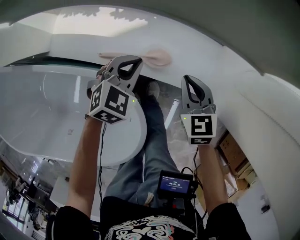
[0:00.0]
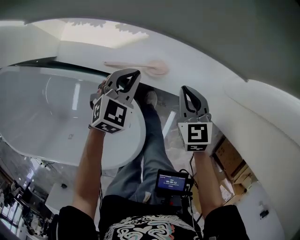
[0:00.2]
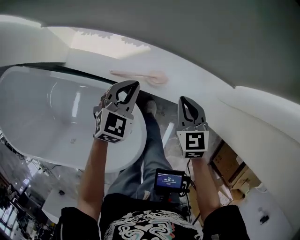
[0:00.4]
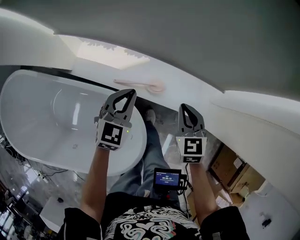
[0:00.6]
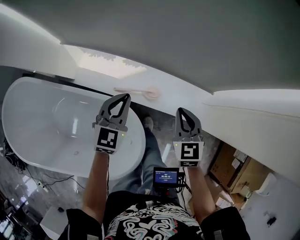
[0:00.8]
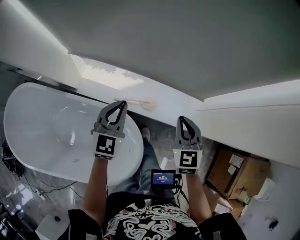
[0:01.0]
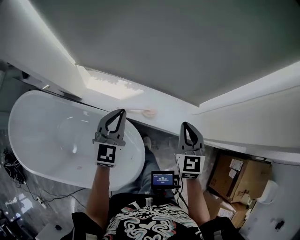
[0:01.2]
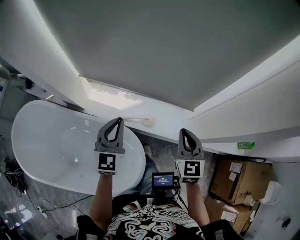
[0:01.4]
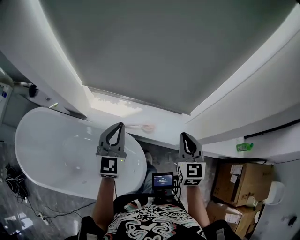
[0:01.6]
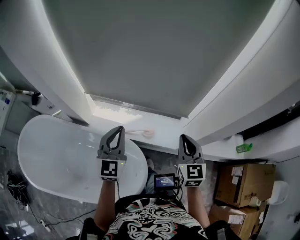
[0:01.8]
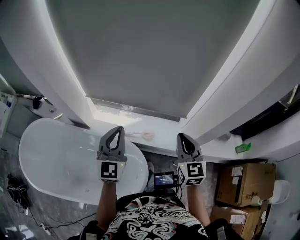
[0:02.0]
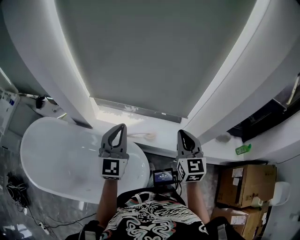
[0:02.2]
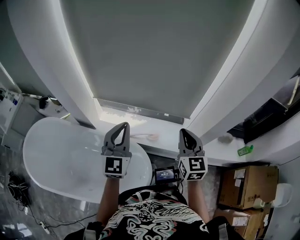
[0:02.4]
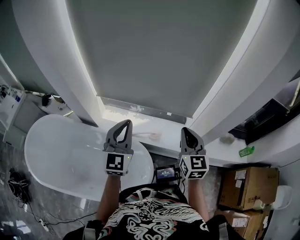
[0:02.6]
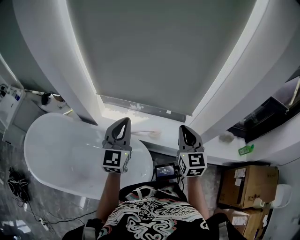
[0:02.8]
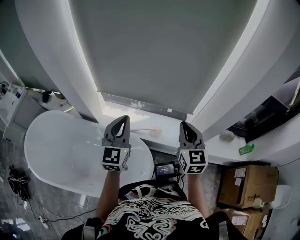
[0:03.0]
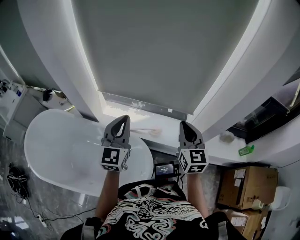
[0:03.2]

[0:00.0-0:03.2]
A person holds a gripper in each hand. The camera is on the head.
0:00.0 to 0:01.6: Both grippers move upward, approximately 40 cm. The left gripper tilts its fingers roughly 40 degrees upward, while the right gripper changes its angle by about 30 degrees.
0:01.6 to 0:03.2: Both grippers travel together upward and backward, roughly 10 cm.

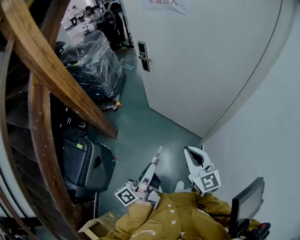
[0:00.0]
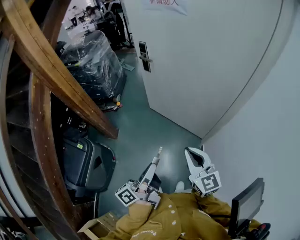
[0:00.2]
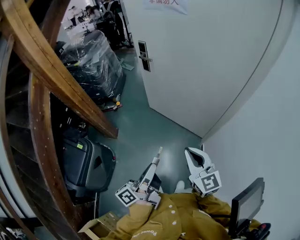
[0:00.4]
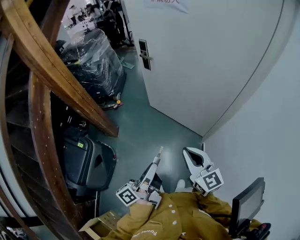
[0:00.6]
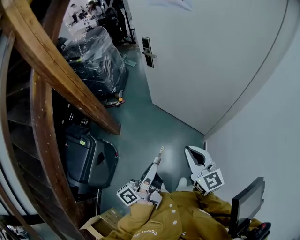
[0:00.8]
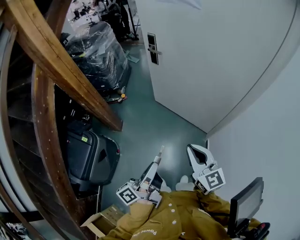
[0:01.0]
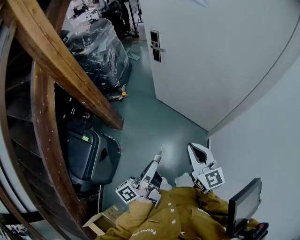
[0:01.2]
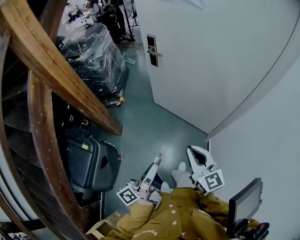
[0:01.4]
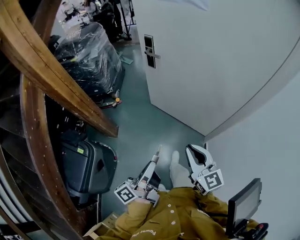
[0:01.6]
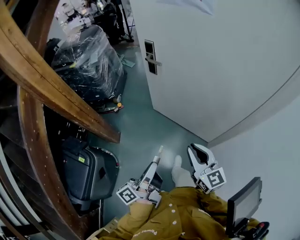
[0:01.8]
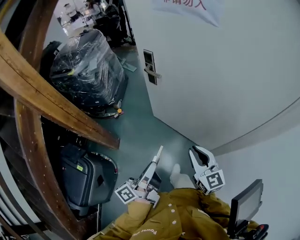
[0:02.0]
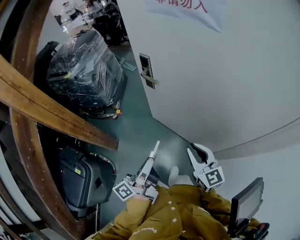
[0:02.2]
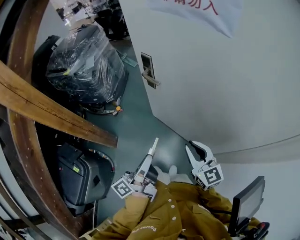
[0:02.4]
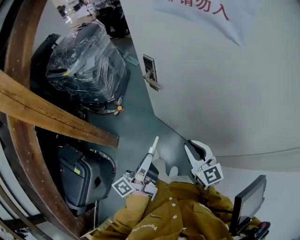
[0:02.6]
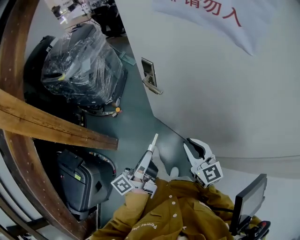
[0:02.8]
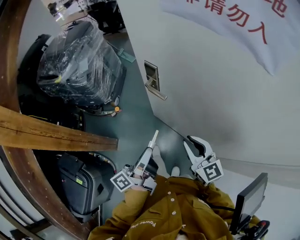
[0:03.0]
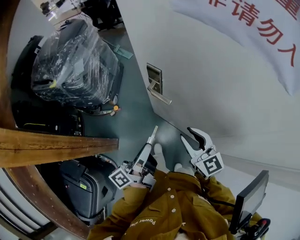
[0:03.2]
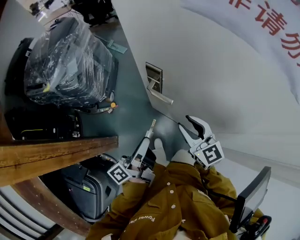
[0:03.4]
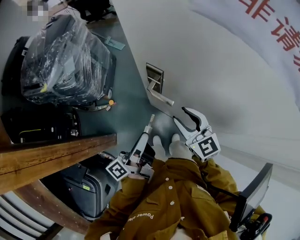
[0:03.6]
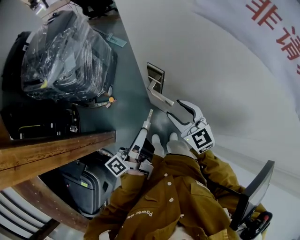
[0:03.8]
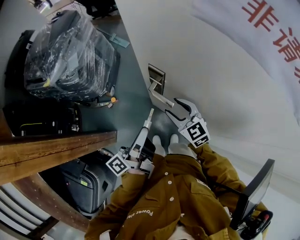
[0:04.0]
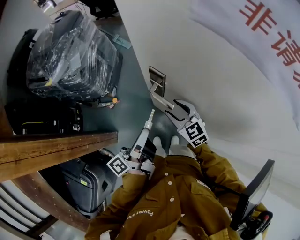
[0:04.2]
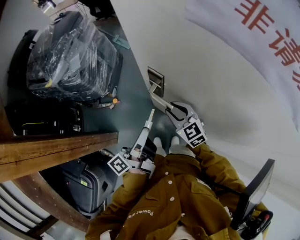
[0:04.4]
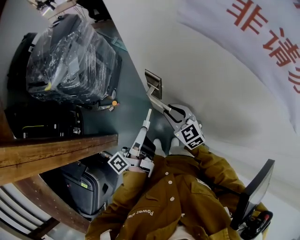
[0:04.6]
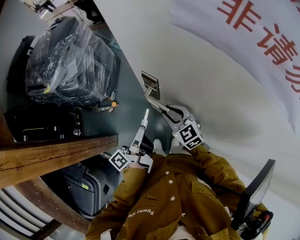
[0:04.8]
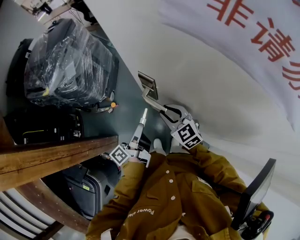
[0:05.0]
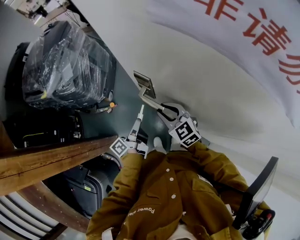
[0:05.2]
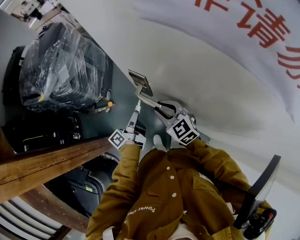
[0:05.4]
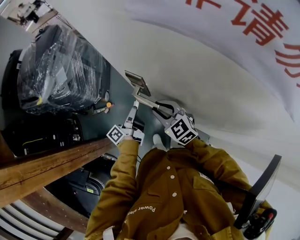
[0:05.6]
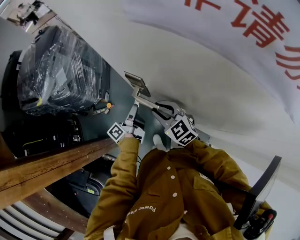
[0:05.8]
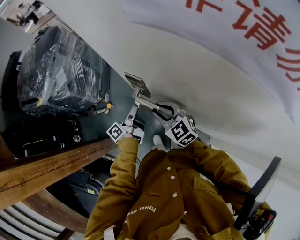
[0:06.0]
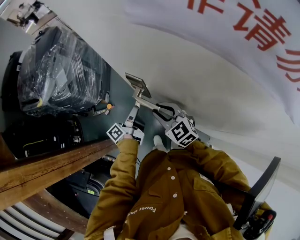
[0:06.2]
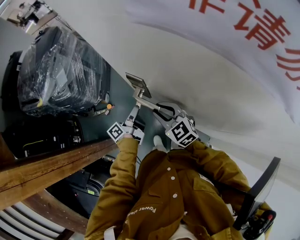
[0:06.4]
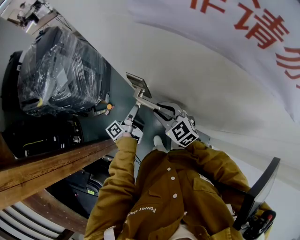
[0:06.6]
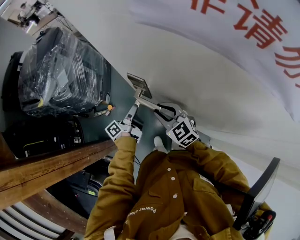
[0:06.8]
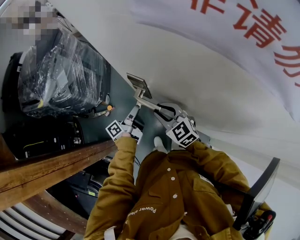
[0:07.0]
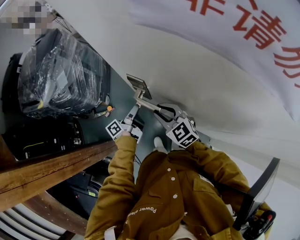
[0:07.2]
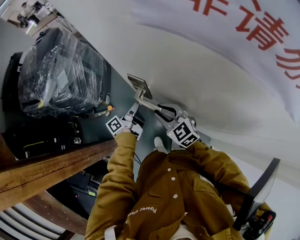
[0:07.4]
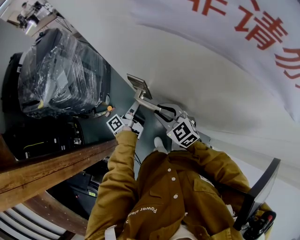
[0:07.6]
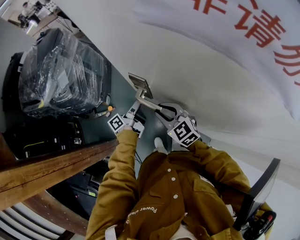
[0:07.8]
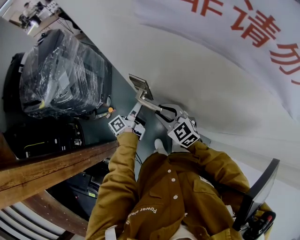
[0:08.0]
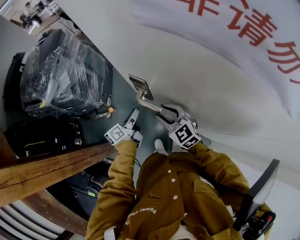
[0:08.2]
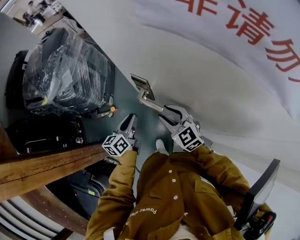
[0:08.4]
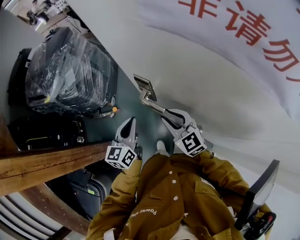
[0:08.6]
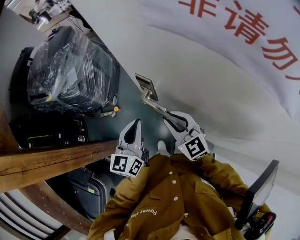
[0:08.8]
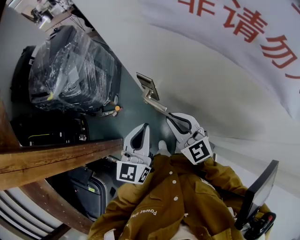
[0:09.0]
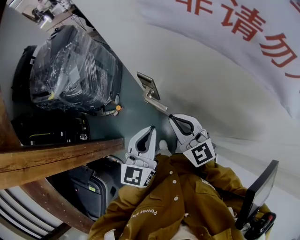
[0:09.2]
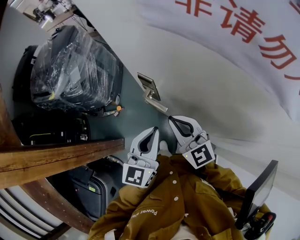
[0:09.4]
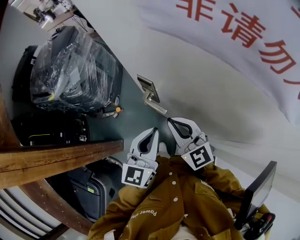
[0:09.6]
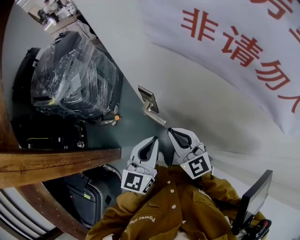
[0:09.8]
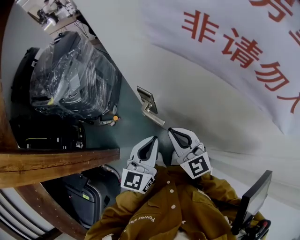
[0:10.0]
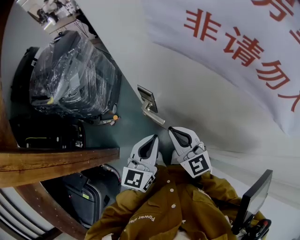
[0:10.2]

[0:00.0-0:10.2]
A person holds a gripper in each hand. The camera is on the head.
0:00.0 to 0:01.4: The right gripper shifts by roughly 10 cm.
0:01.4 to 0:03.0: The right gripper moves some 50 cm.
0:03.0 to 0:04.4: The right gripper changes place by some 25 cm, and opens, then closes again.
0:07.2 to 0:08.8: The right gripper travels upward by some 5 cm.

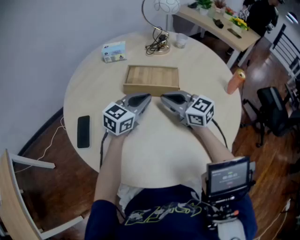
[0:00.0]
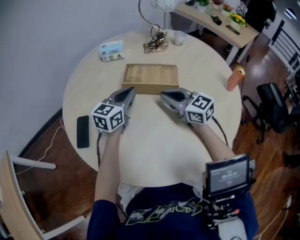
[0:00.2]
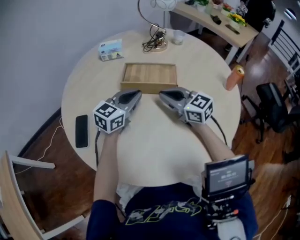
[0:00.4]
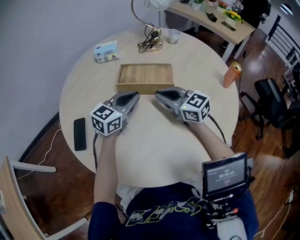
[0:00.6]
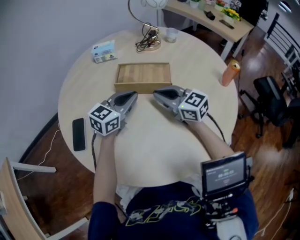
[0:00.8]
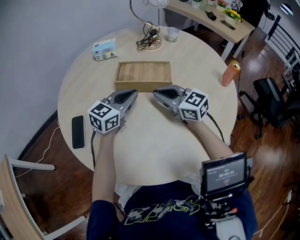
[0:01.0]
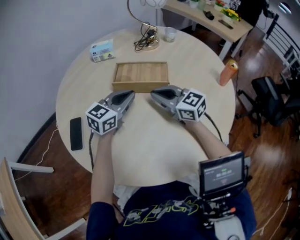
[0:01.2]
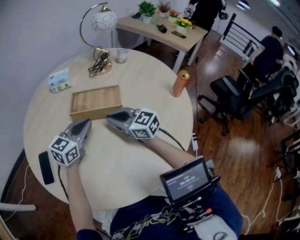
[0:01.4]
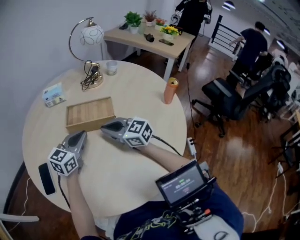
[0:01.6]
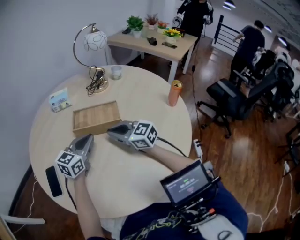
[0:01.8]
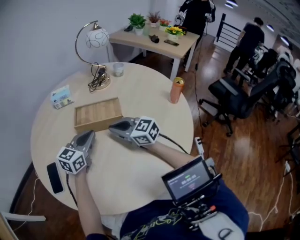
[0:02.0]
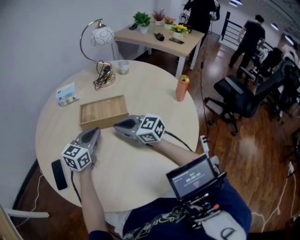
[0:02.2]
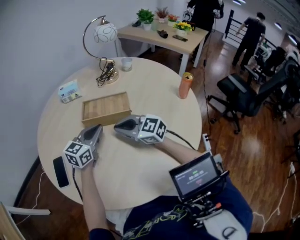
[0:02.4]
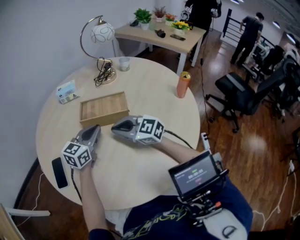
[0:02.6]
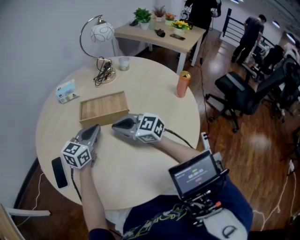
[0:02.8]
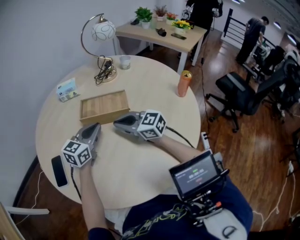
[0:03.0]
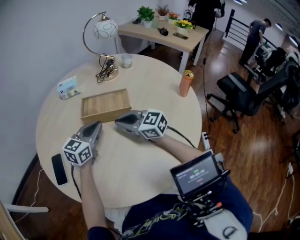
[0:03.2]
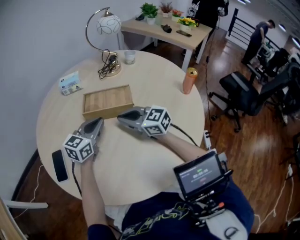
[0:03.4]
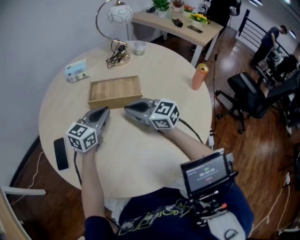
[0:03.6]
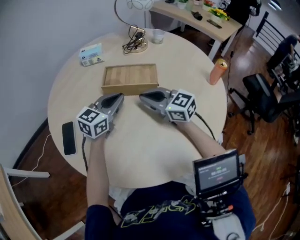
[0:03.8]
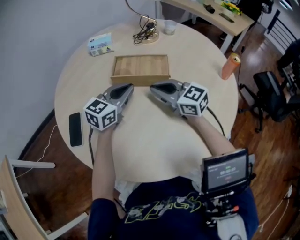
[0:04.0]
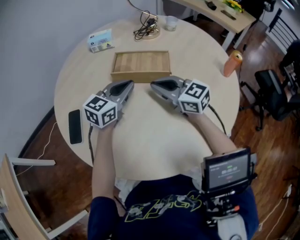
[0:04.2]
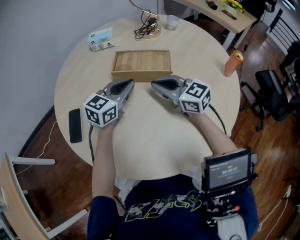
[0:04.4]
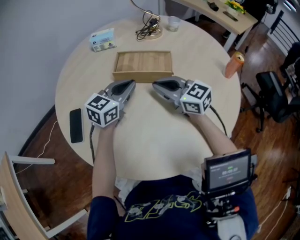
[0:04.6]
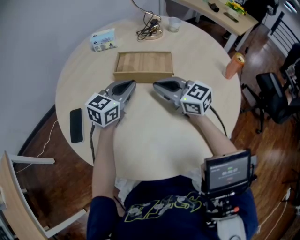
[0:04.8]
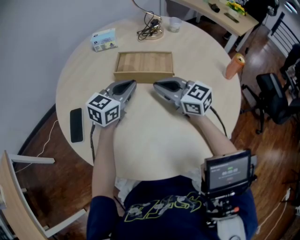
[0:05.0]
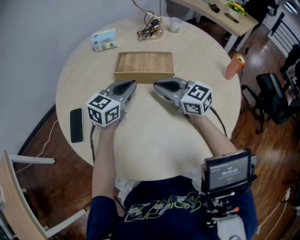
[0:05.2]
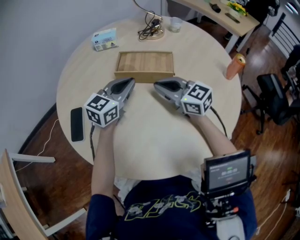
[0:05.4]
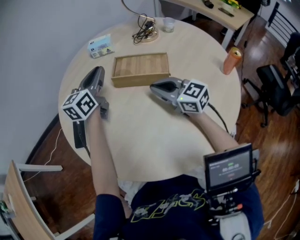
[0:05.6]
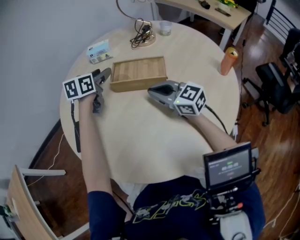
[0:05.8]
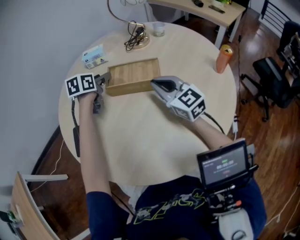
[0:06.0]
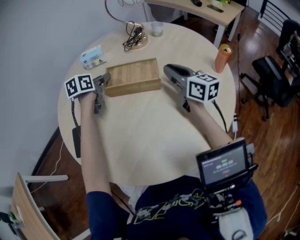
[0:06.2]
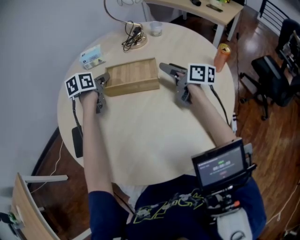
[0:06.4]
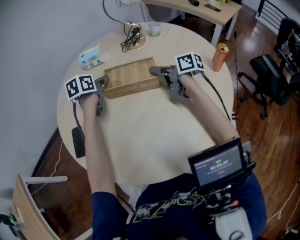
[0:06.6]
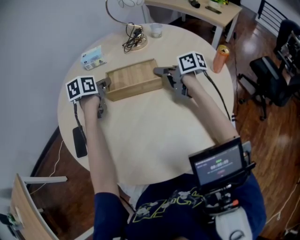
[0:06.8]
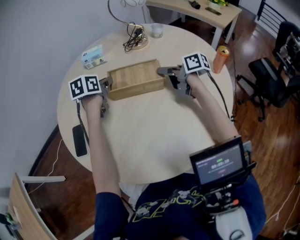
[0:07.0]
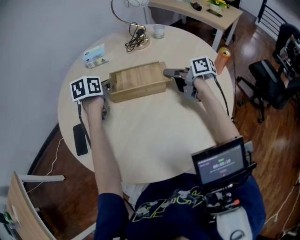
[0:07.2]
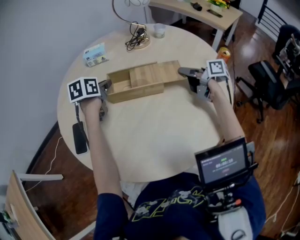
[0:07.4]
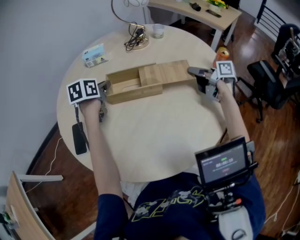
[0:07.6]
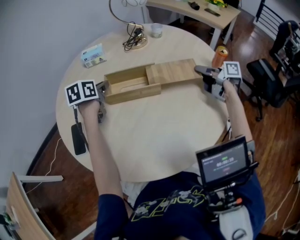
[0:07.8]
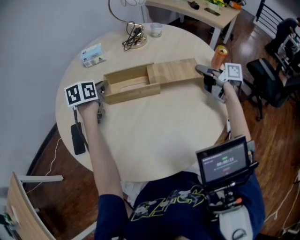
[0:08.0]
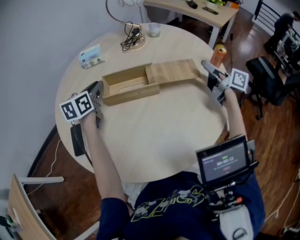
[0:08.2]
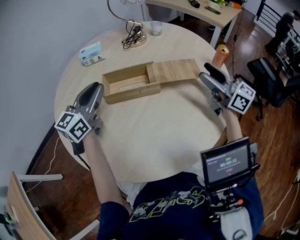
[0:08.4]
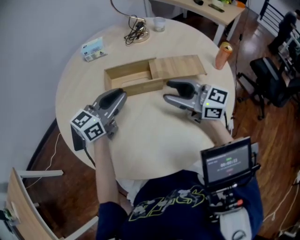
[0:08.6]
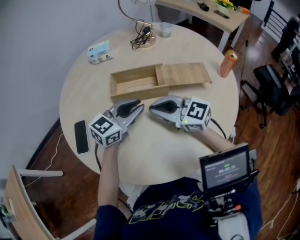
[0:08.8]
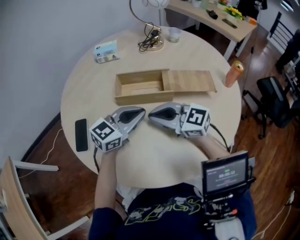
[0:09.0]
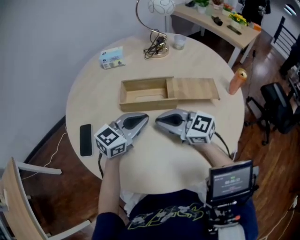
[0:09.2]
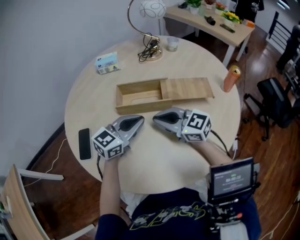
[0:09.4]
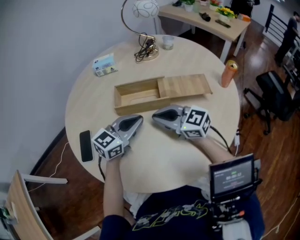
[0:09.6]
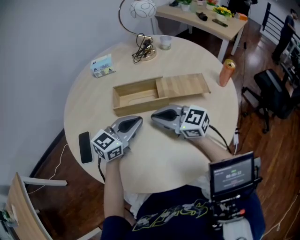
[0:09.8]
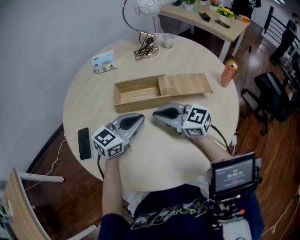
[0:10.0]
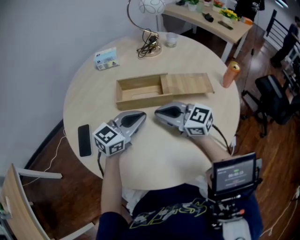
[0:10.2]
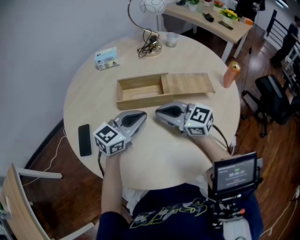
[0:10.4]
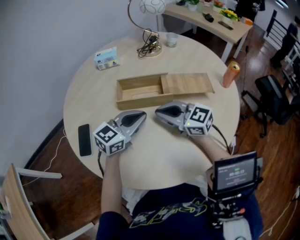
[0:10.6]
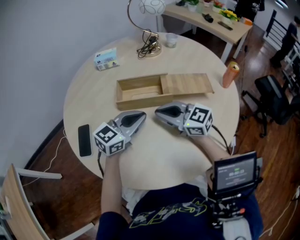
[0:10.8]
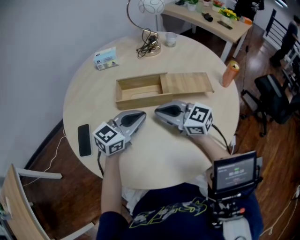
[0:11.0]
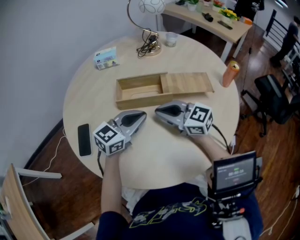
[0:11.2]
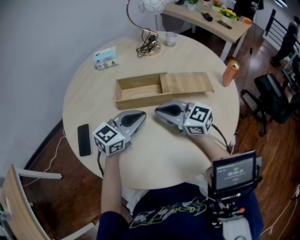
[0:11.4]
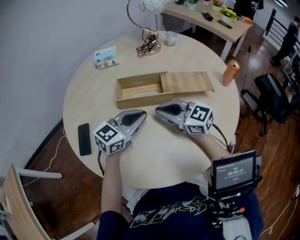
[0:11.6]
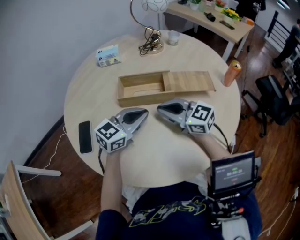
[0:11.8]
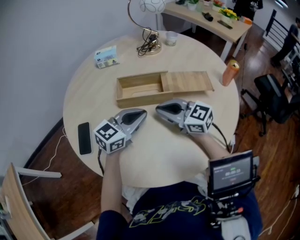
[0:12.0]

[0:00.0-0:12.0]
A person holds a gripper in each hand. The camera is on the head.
0:01.6 to 0:03.0: The grippers make only small movements.
0:03.0 to 0:04.4: Both grippers stay put.
0:04.4 to 0:06.0: The left gripper moves forward and to the left, about 15 cm, turns by about 30 degrees, and opens up.
0:06.0 to 0:07.6: The right gripper moves to the right, approximately 15 cm, twists about 60 degrees clockwise, seen from behind, and opens, then closes once more. The left gripper closes its fingers.
0:07.6 to 0:09.0: The left gripper goes upward and returns, approximately 10 cm each way, and swivels roughly 50 degrees, while the right gripper travels upward and back again, roughly 10 cm each way, rolls counterclockwise, seen from behind, by roughly 60 degrees, and opens, then closes again.
0:09.0 to 0:10.4: The grippers move only a little.
0:10.4 to 0:12.0: Both grippers stay about where they are.
